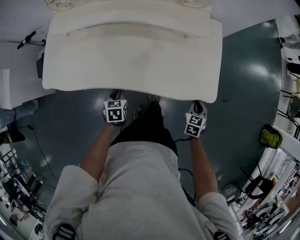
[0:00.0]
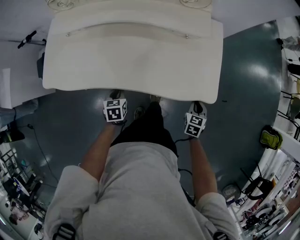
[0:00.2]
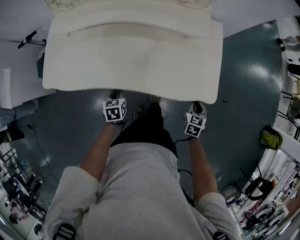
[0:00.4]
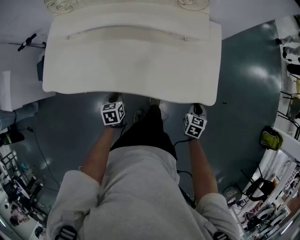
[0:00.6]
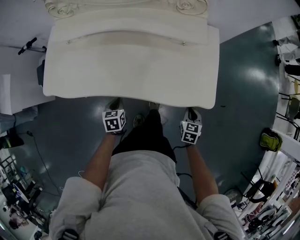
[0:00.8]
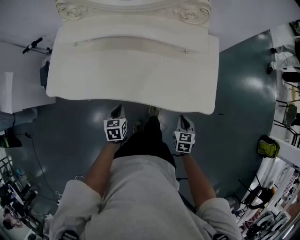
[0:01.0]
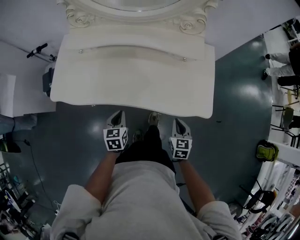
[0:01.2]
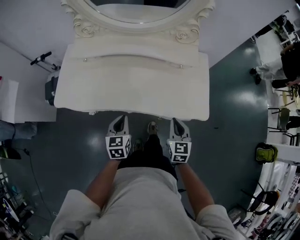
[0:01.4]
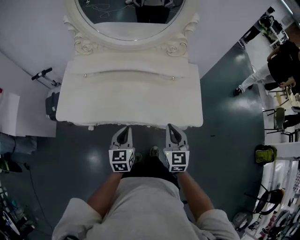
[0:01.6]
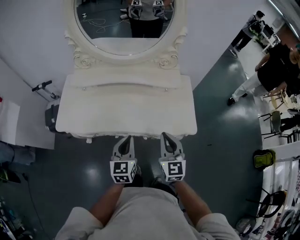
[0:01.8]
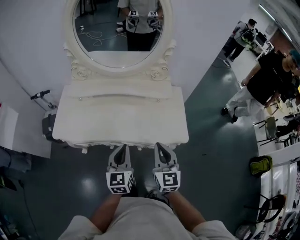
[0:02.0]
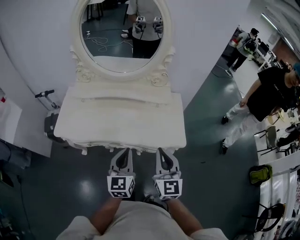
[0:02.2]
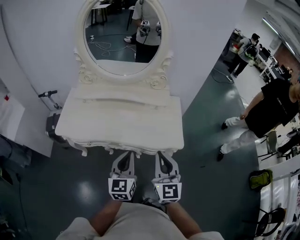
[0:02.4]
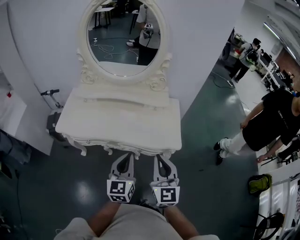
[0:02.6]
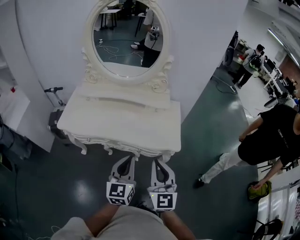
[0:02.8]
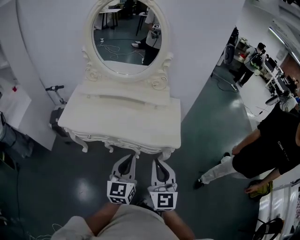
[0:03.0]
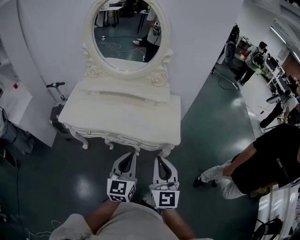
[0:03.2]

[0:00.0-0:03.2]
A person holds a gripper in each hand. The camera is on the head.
0:00.0 to 0:01.6: The left gripper heads upward, covering about 20 cm, and angles its fingers upward, by approximately 30 degrees. The right gripper shifts some 30 cm upward and to the left, and tips its fingers upward by roughly 30 degrees.
0:01.6 to 0:03.2: The left gripper travels upward, backward and to the right by about 30 cm. The right gripper is displaced backward, upward and to the right by roughly 25 cm, and turns by approximately 20 degrees.

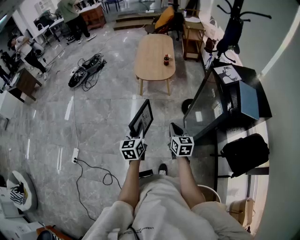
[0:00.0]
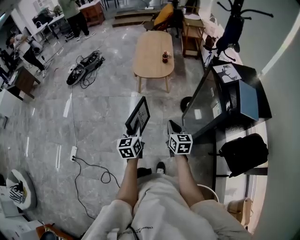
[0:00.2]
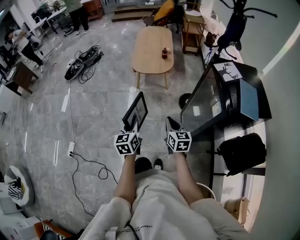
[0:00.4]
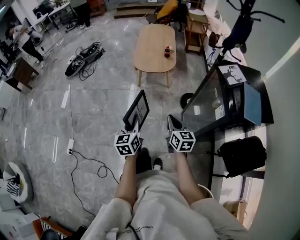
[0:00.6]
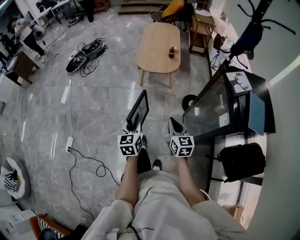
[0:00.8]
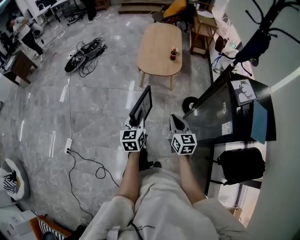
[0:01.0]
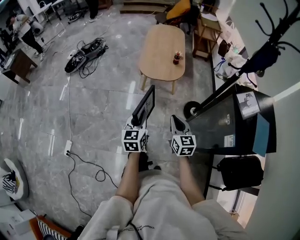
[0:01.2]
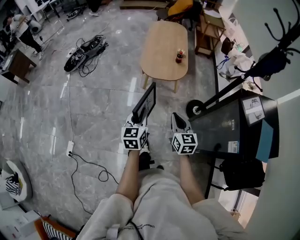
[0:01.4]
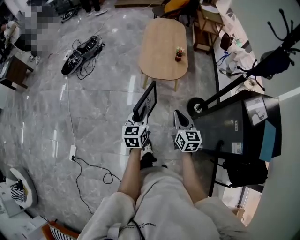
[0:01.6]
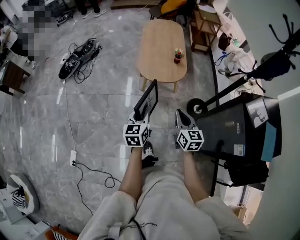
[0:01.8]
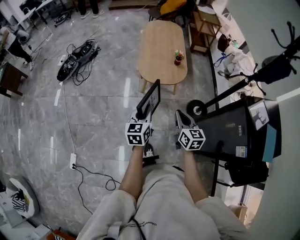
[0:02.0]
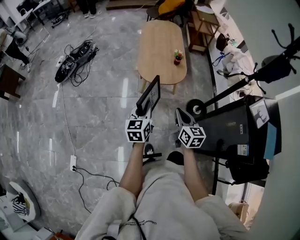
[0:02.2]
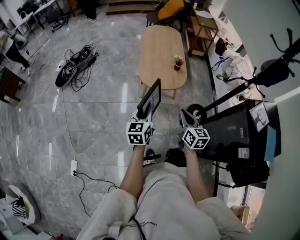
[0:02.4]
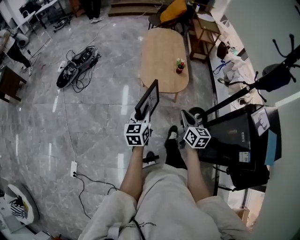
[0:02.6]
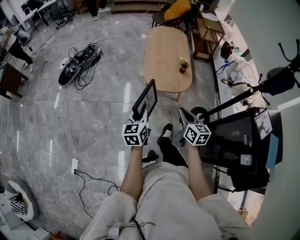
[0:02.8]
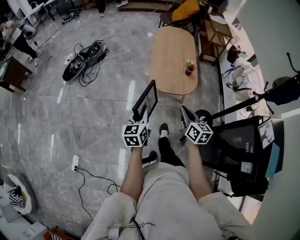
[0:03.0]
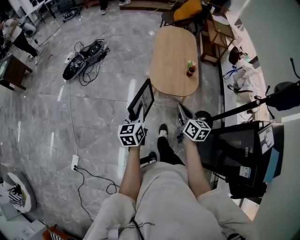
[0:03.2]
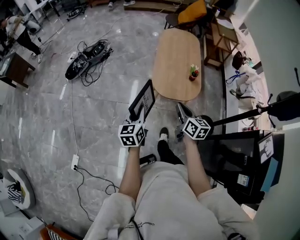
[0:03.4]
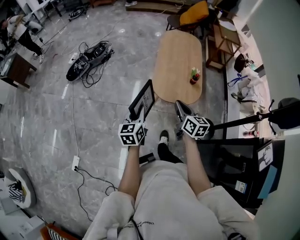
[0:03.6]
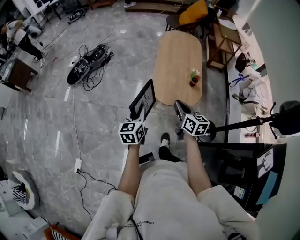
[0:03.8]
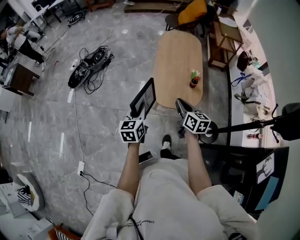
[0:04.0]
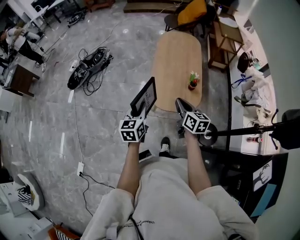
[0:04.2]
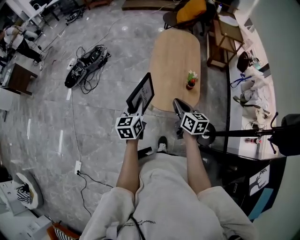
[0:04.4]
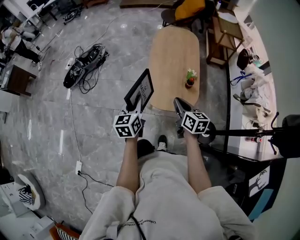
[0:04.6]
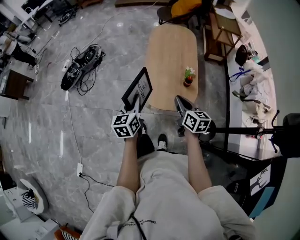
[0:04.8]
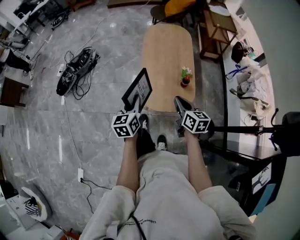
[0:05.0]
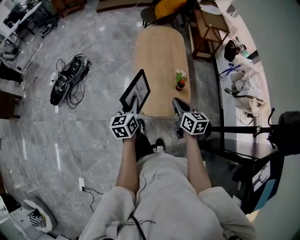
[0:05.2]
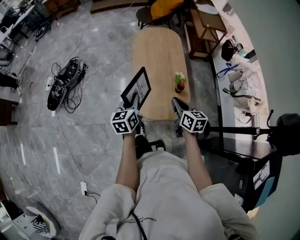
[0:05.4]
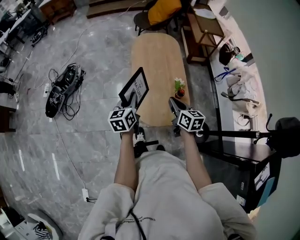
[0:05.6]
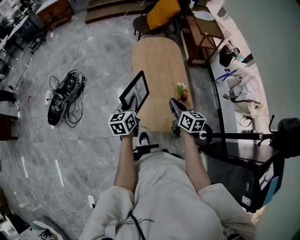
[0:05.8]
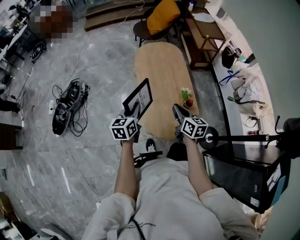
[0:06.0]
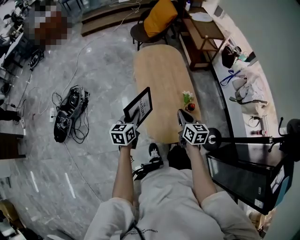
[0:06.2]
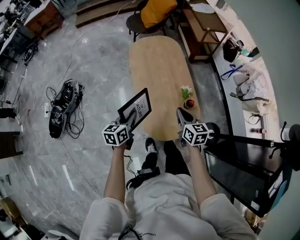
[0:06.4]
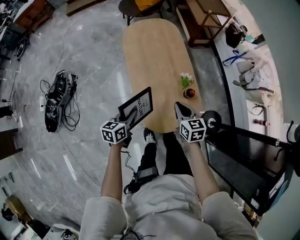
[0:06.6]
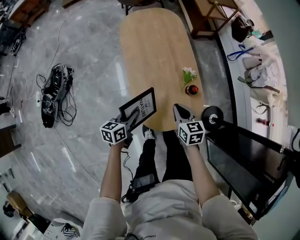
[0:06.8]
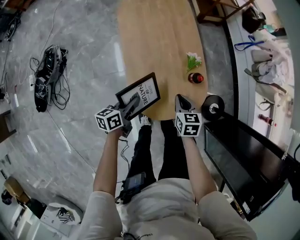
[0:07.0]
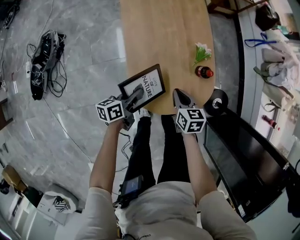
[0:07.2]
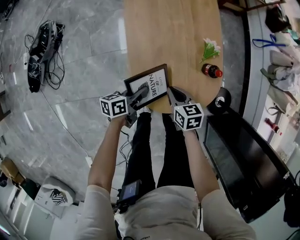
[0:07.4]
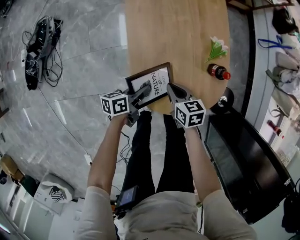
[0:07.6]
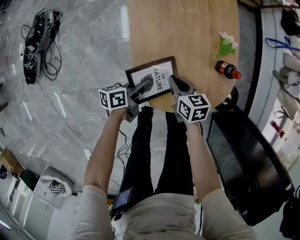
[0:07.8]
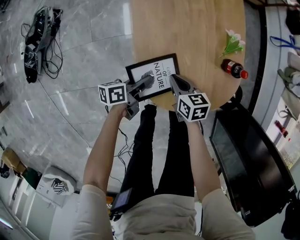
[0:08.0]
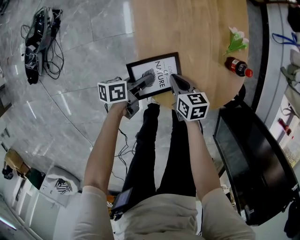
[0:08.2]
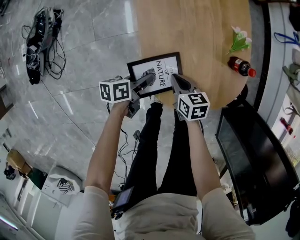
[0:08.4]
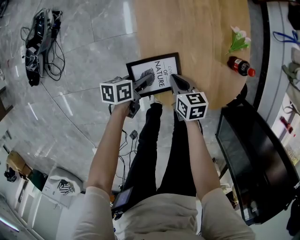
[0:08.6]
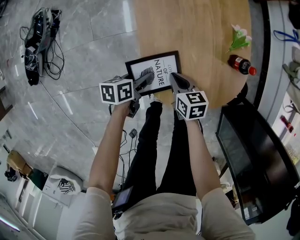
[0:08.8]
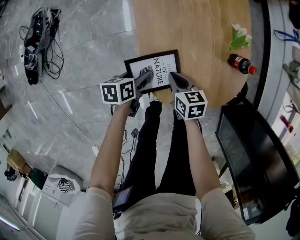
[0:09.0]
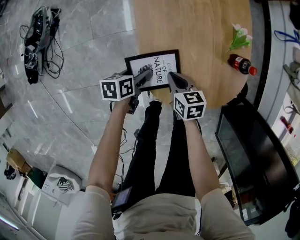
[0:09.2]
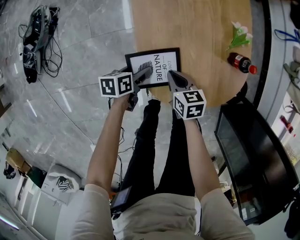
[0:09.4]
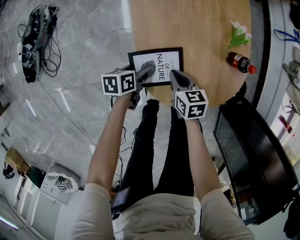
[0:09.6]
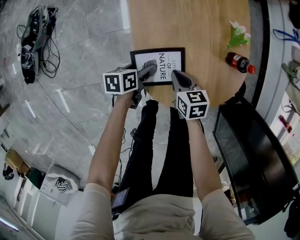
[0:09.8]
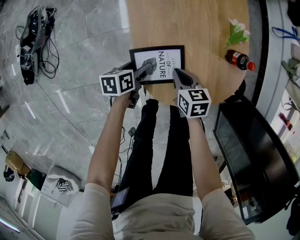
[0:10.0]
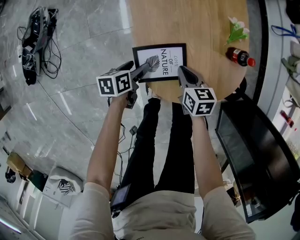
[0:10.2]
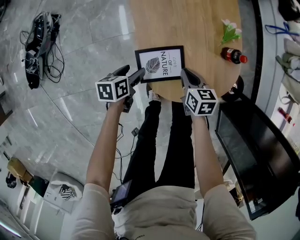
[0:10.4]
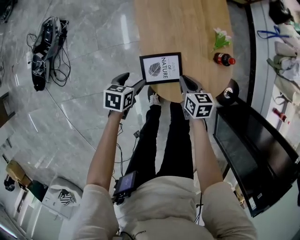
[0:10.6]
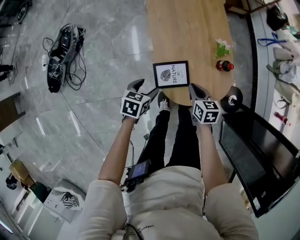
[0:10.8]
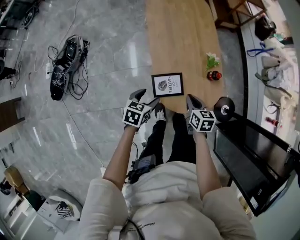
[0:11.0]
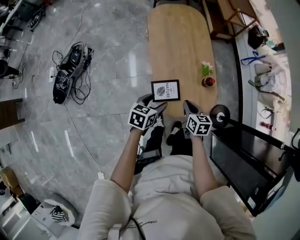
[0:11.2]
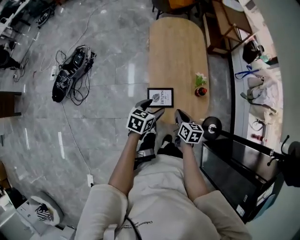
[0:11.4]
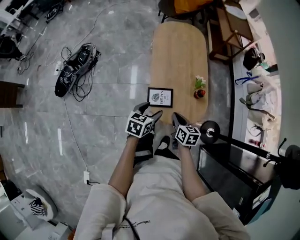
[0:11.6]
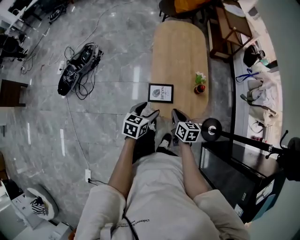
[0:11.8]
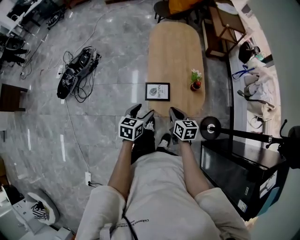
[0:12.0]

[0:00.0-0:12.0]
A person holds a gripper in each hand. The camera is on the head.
0:00.0 to 0:01.6: Both grippers move forward, some 30 cm.
0:01.6 to 0:03.0: Both grippers travel together forward and to the left, approximately 20 cm.
0:03.0 to 0:04.4: The right gripper travels forward by approximately 25 cm. The left gripper heads forward and to the right, covering roughly 25 cm.
0:04.4 to 0:06.0: The two grippers go some 30 cm forward. The left gripper swivels approximately 20 degrees.
0:06.0 to 0:07.6: The two grippers go roughly 50 cm downward. The right gripper rotates approximately 30 degrees. Meanwhile the left gripper changes its angle by approximately 50 degrees.
0:07.6 to 0:09.0: The right gripper heads downward and to the left, covering about 10 cm. The left gripper moves to the left and downward, roughly 10 cm, changes its angle by some 20 degrees, and opens its fingers.
0:09.0 to 0:10.4: The right gripper shifts about 5 cm to the right.
0:10.4 to 0:12.0: Both grippers travel together upward and backward, roughly 50 cm. The left gripper swivels approximately 30 degrees.

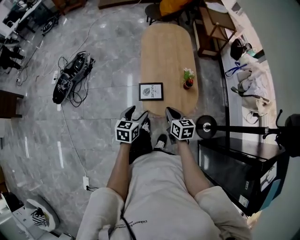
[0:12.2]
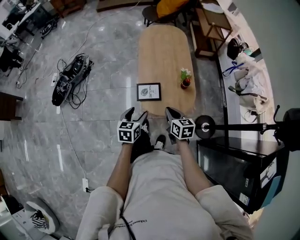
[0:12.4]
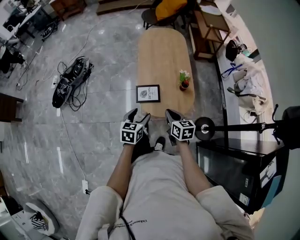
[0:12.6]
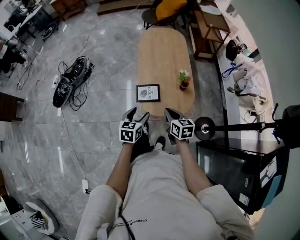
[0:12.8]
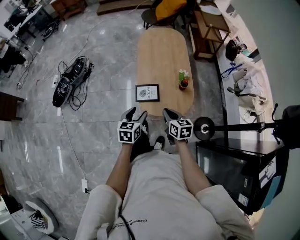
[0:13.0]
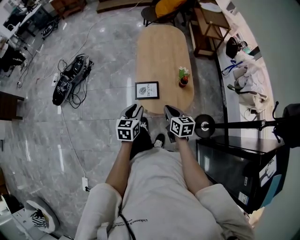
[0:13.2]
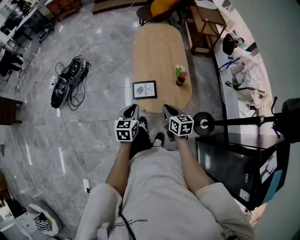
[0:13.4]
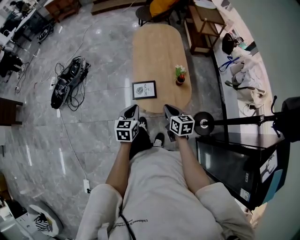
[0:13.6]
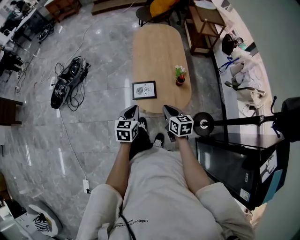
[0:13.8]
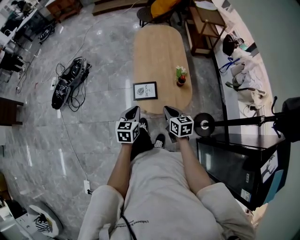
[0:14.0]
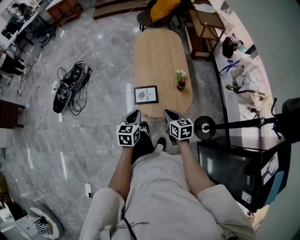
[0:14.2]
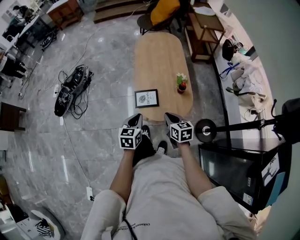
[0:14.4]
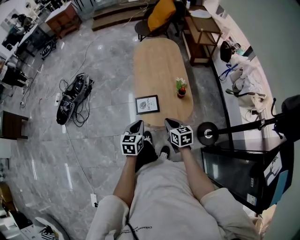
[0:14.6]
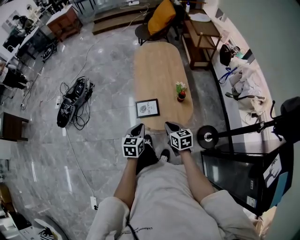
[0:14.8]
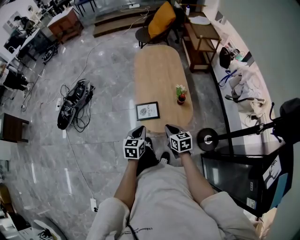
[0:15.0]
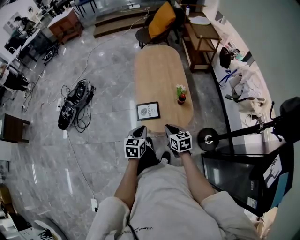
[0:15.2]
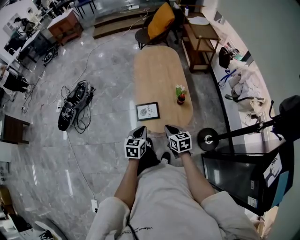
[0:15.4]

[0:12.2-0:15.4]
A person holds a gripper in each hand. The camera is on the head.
0:12.2 to 0:13.8: The left gripper closes. Meanwhile the right gripper changes place by approximately 5 cm.
0:13.8 to 0:15.4: The grippers move only a little.

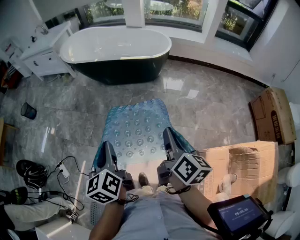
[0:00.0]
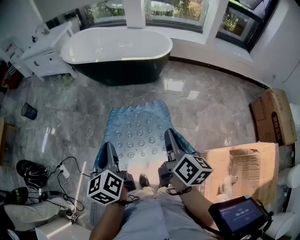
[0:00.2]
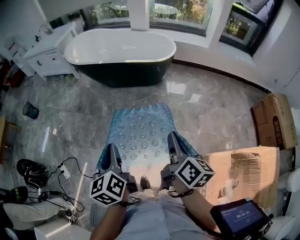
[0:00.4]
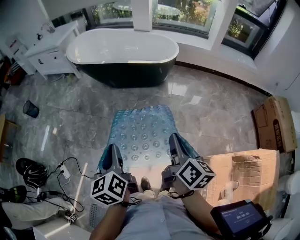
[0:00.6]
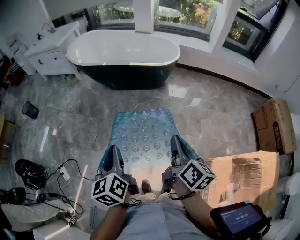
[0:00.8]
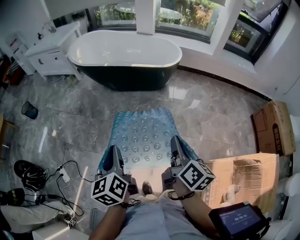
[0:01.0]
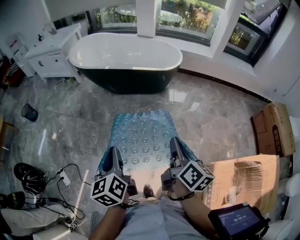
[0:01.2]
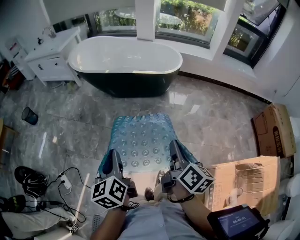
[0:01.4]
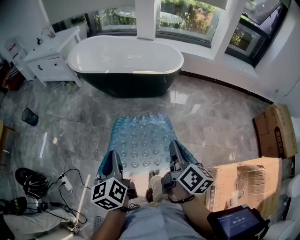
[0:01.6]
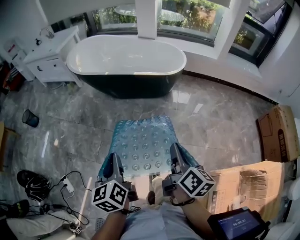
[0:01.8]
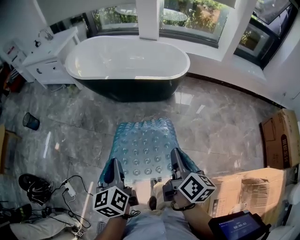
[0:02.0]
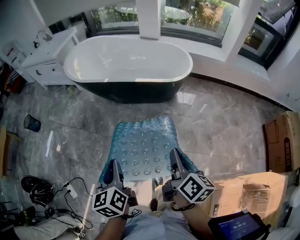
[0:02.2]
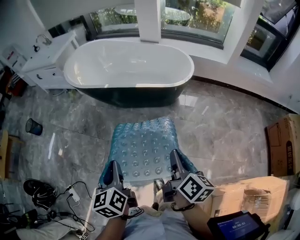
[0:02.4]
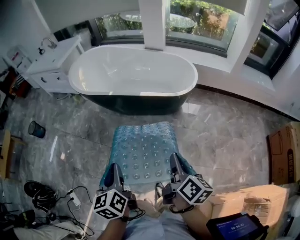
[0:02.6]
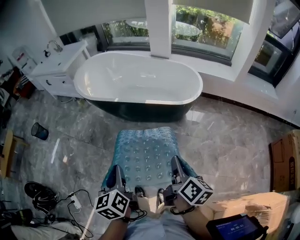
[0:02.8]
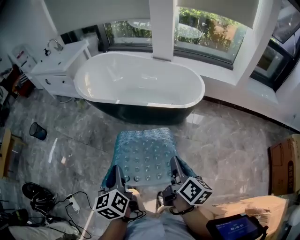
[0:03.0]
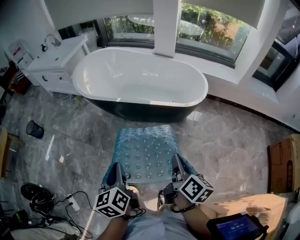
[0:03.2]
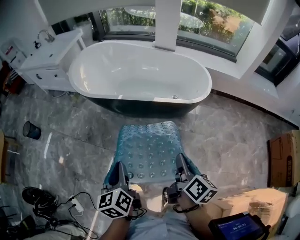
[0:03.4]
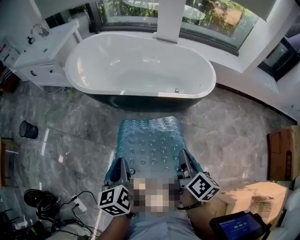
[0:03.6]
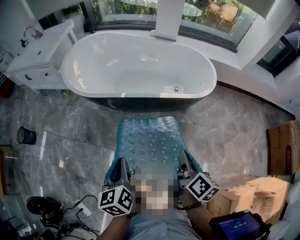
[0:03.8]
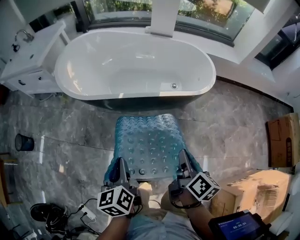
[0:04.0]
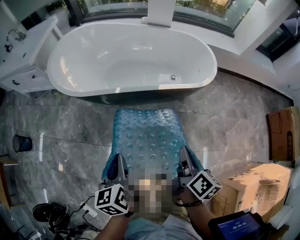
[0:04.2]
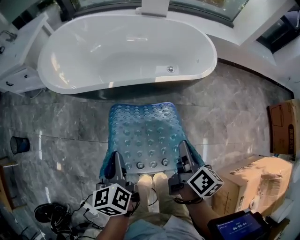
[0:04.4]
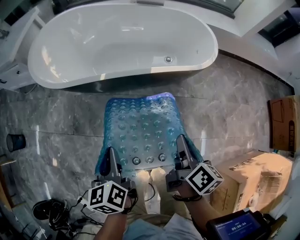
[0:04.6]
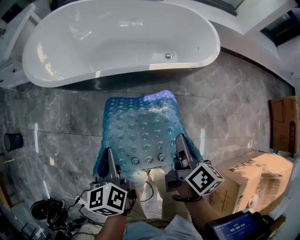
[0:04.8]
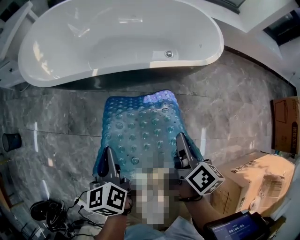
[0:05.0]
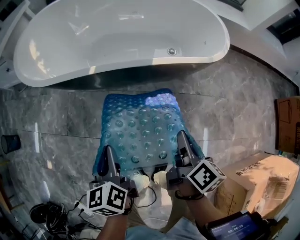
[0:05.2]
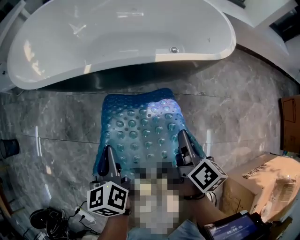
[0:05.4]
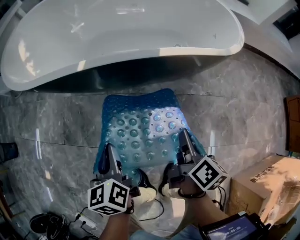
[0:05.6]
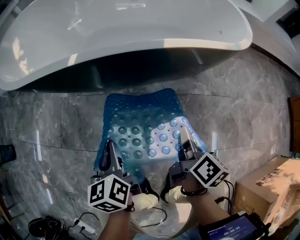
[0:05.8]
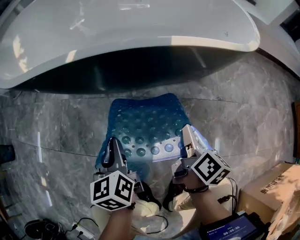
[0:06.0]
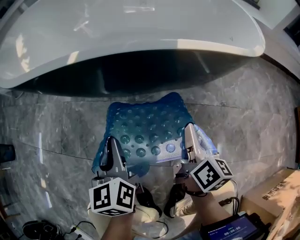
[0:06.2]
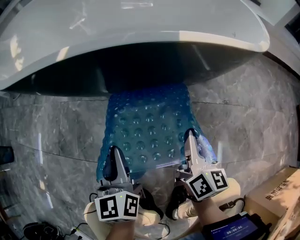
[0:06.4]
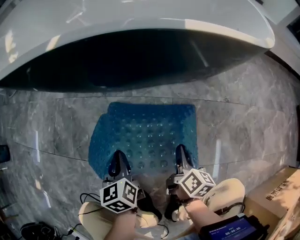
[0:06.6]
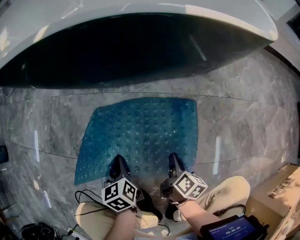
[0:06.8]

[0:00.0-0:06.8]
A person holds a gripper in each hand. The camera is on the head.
0:00.0 to 0:01.4: The two grippers go roughly 10 cm to the left and forward.
0:01.4 to 0:02.8: Both grippers move forward, approximately 25 cm.
0:02.8 to 0:04.0: The left gripper goes about 30 cm forward, to the left and downward; the right gripper is displaced to the left, forward and downward by about 25 cm.
0:04.0 to 0:05.4: Both grippers move downward, roughly 25 cm.
0:05.4 to 0:06.8: The grippers both shift downward by some 40 cm.
